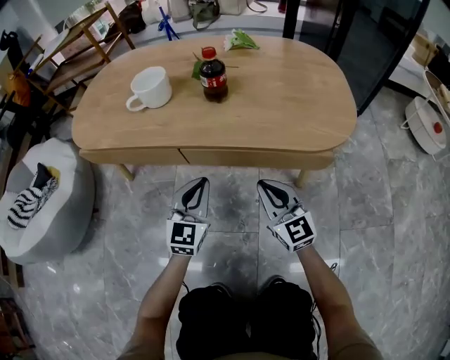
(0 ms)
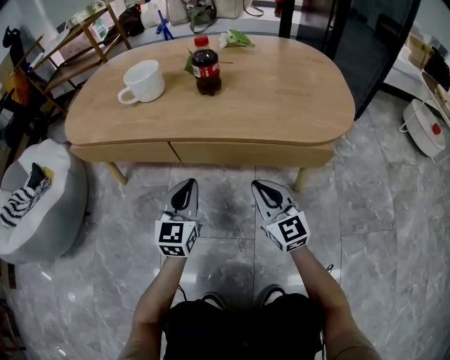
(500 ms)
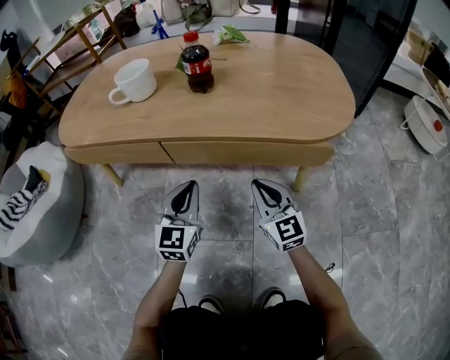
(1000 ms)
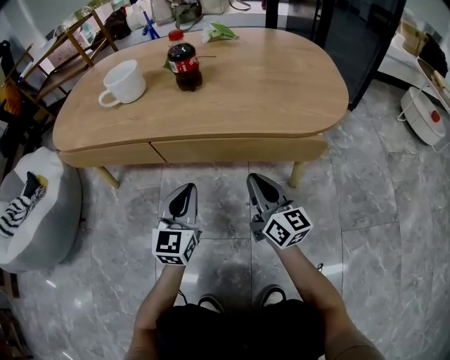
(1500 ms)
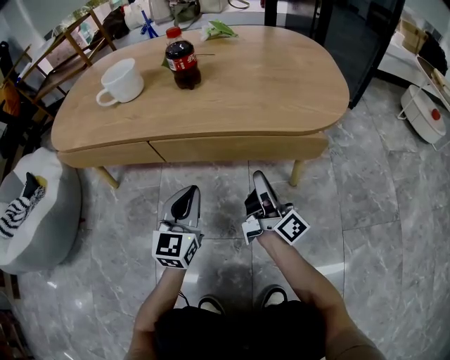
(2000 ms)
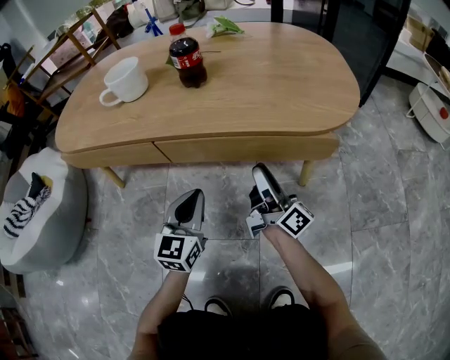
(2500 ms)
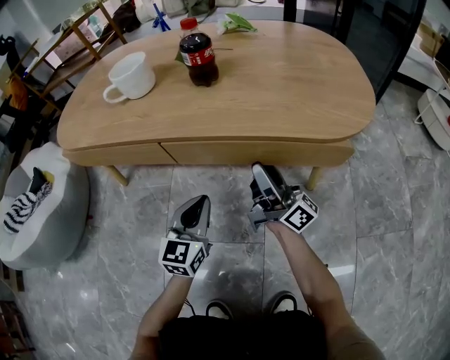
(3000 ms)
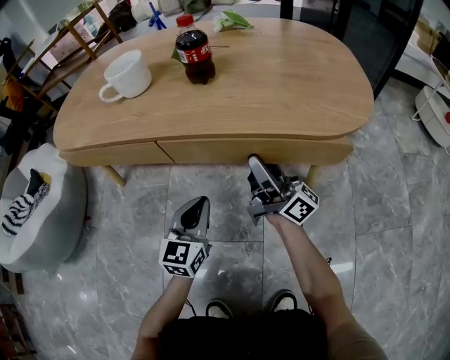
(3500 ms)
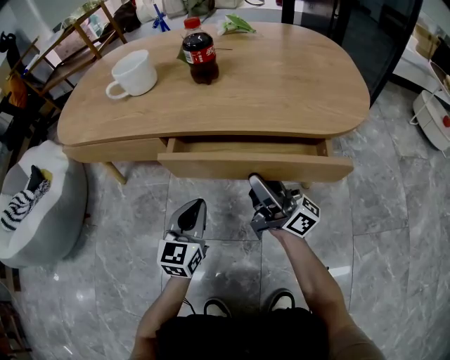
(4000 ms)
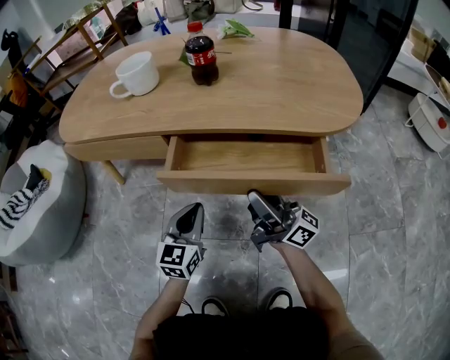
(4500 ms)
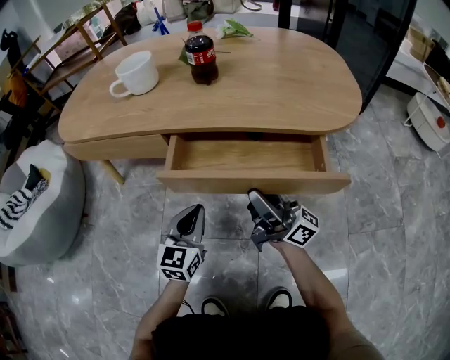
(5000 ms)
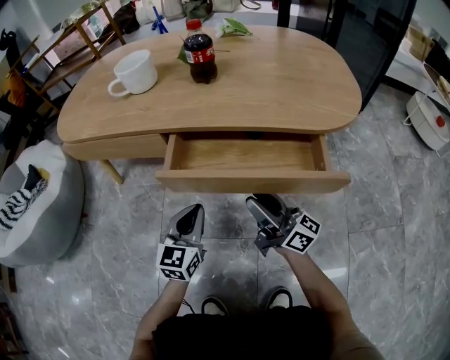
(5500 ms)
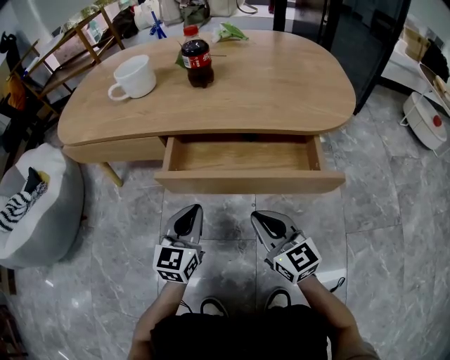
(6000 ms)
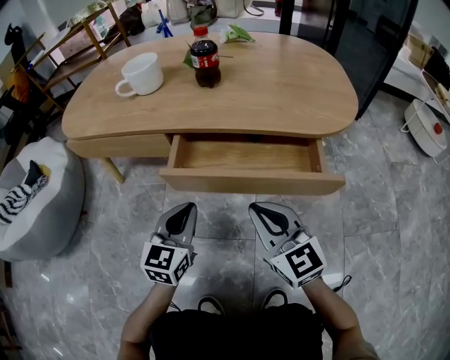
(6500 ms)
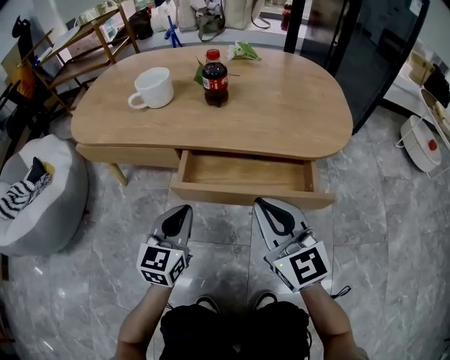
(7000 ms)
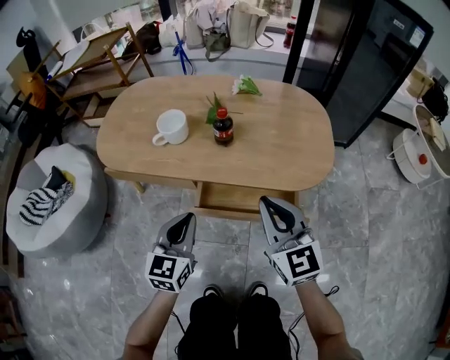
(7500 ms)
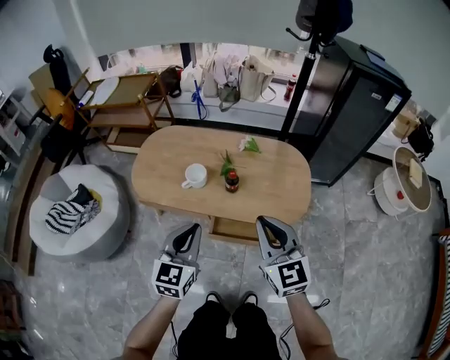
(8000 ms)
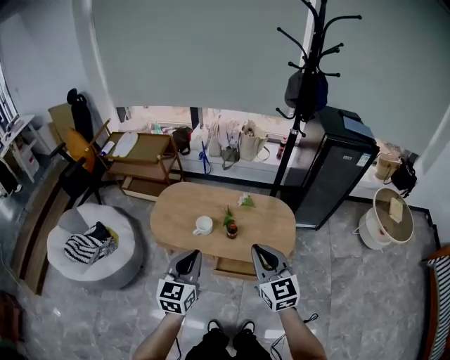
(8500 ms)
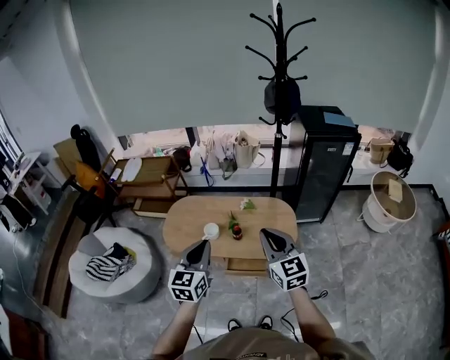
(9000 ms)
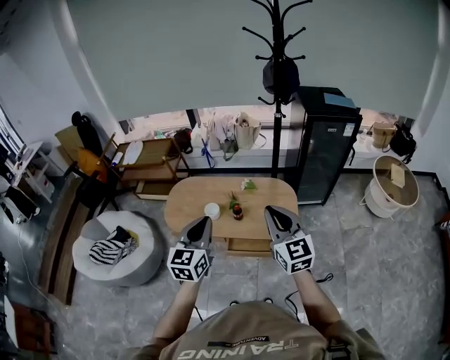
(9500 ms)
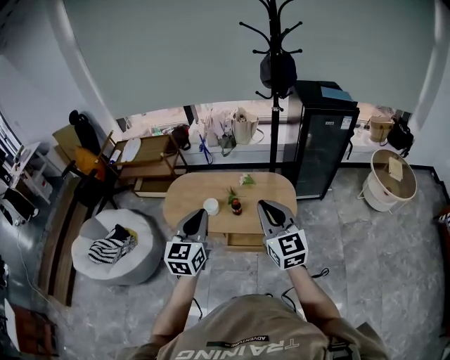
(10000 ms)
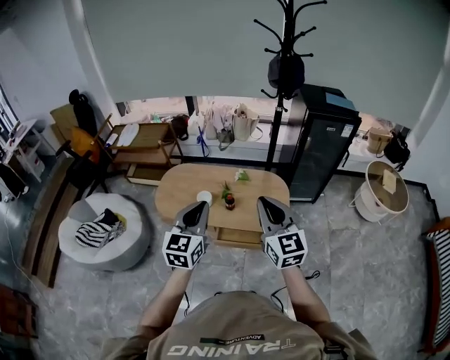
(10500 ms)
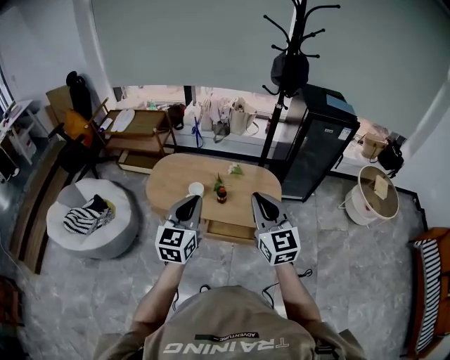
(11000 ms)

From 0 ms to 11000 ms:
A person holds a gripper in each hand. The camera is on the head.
From 0 ms to 2000 ms: The left gripper changes place by some 5 cm. The right gripper shifts roughly 10 cm to the right and downward, and rolls clockwise, seen from behind, by approximately 60 degrees.
From 2000 ms to 3500 ms: The right gripper shifts by approximately 10 cm, swivels roughly 20 degrees, and opens up.
From 3500 ms to 5500 ms: The right gripper moves backward, approximately 10 cm.
From 5500 ms to 7500 ms: Both grippers move upward, roughly 30 cm. The right gripper tips its fingers downward by some 30 degrees, and closes its fingers.
From 7500 ms to 9000 ms: The grippers both shift upward by approximately 50 cm.
From 9000 ms to 11000 ms: The grippers move only a little.

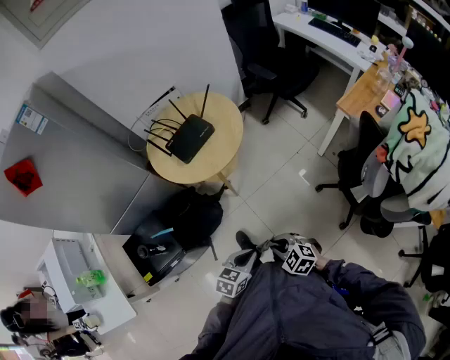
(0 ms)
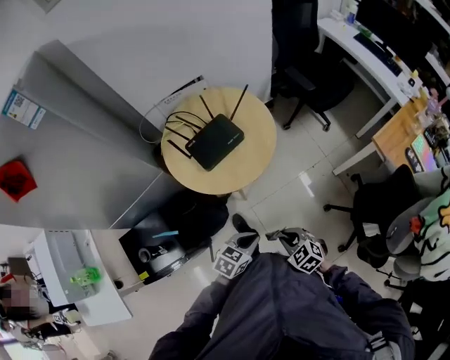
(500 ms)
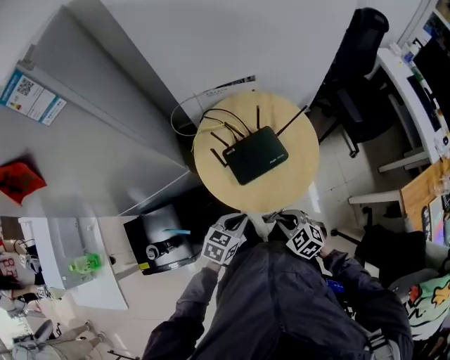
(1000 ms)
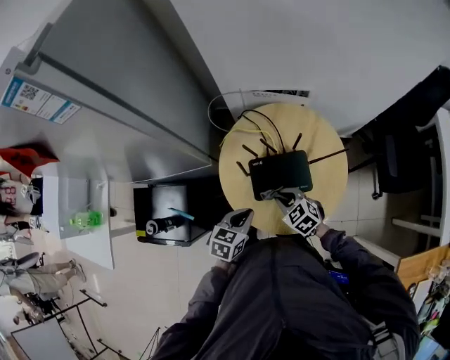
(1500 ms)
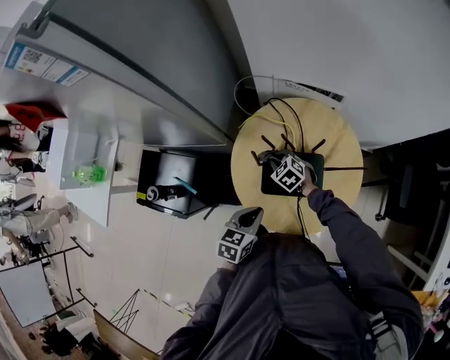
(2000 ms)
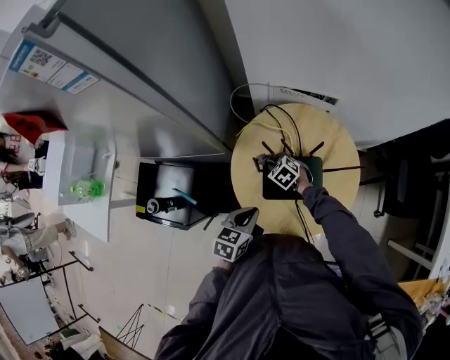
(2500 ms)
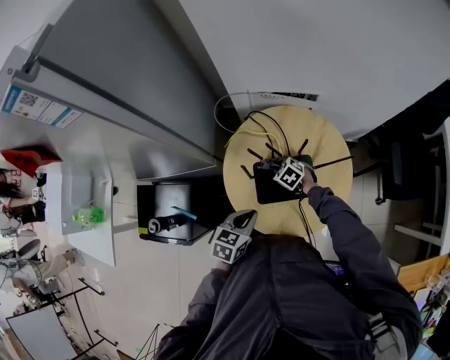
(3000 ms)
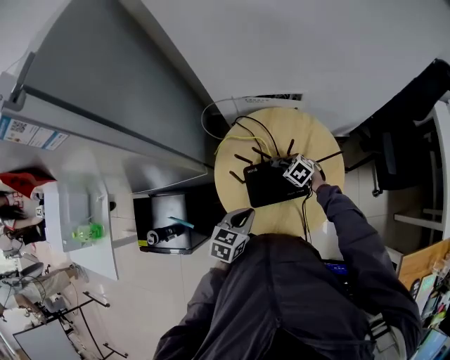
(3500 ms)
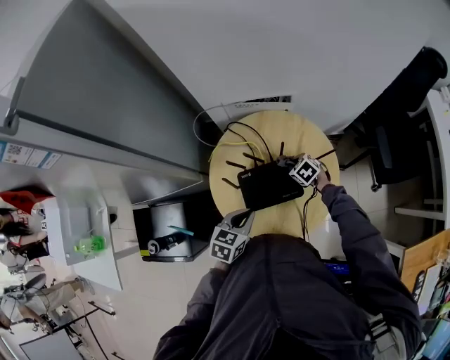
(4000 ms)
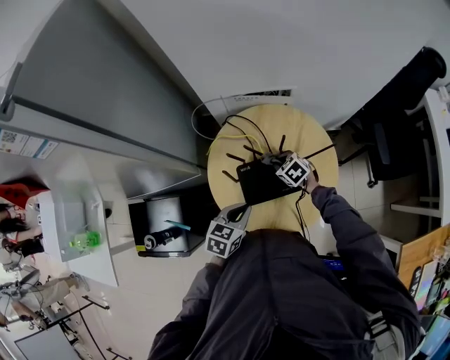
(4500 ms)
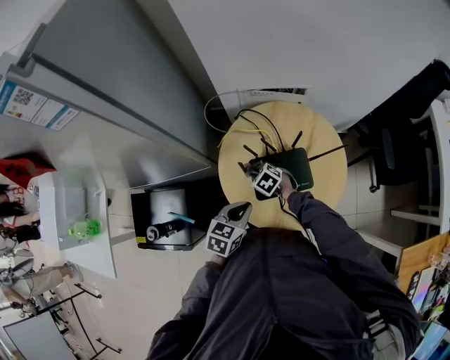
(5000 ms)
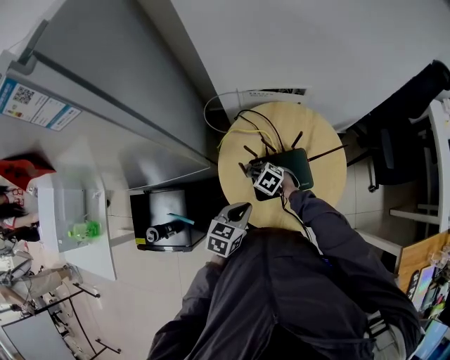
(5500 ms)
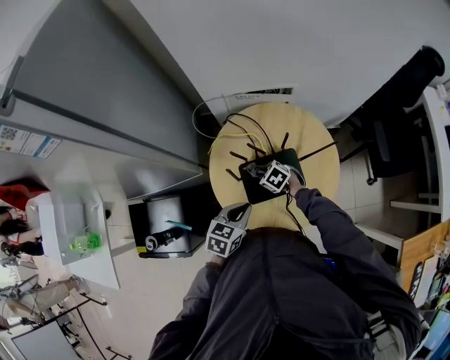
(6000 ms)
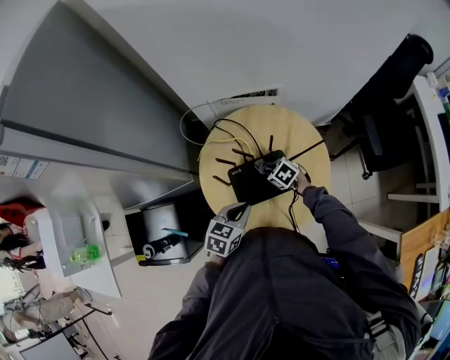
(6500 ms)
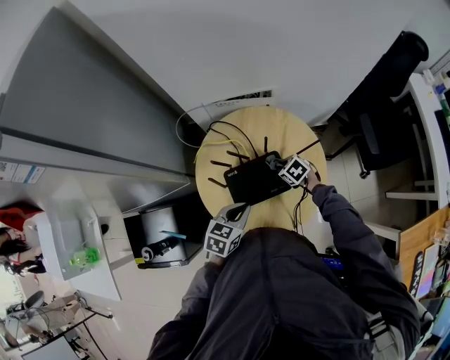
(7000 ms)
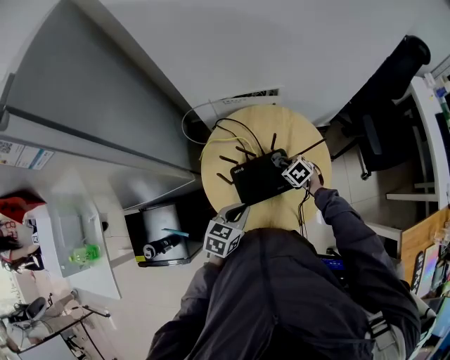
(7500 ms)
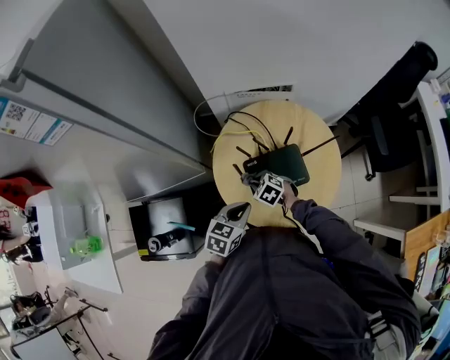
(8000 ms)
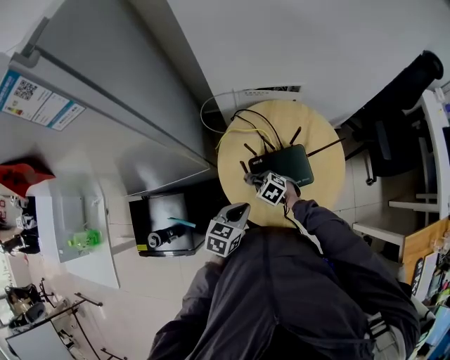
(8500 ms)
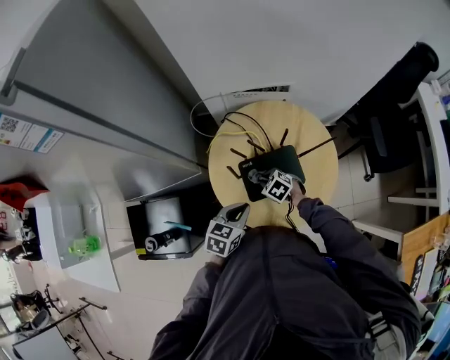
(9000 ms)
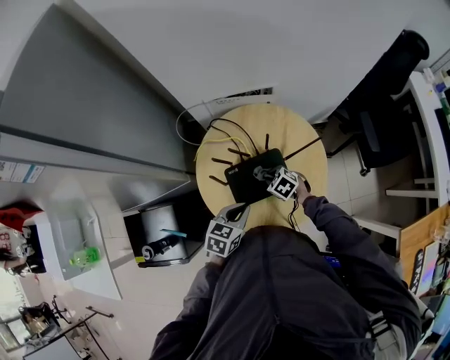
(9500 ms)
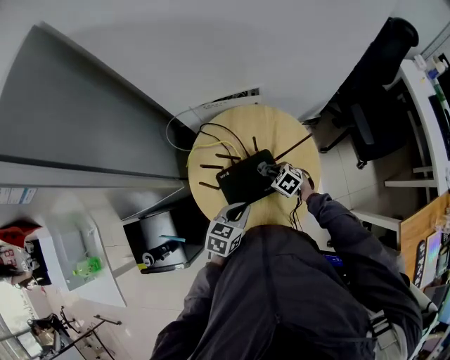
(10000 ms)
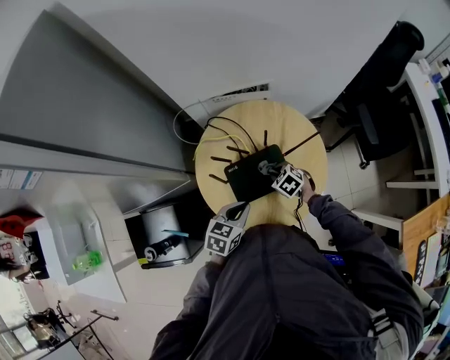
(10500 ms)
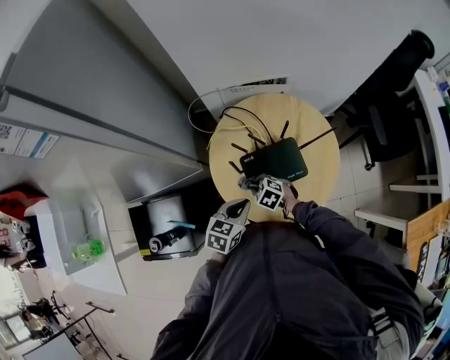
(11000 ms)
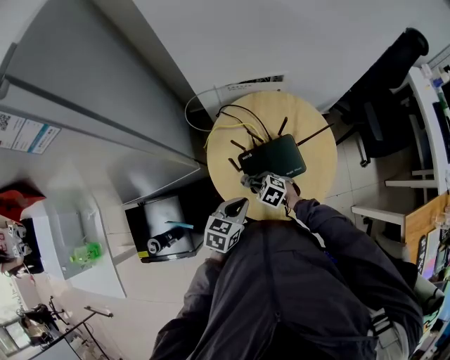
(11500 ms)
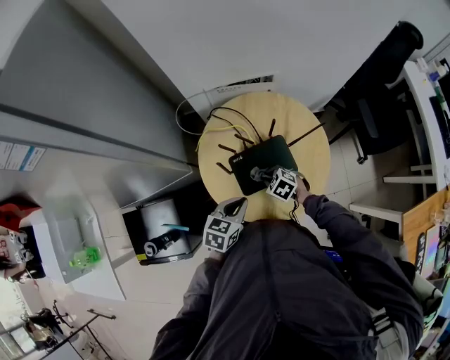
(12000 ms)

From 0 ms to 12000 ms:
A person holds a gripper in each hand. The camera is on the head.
From 0 ms to 2000 ms: Both grippers are carried about 60 cm. The left gripper changes its angle by roughly 50 degrees. The right gripper turns by about 30 degrees.
From 2000 ms to 4000 ms: The right gripper heads to the right, covering some 20 cm, and changes its angle by approximately 20 degrees. Meanwhile the left gripper changes its angle by about 20 degrees.
From 4000 ms to 6000 ms: The right gripper travels to the left by approximately 15 cm.
From 6000 ms to 8000 ms: The right gripper reaches roughly 15 cm to the right, then returns.
From 8000 ms to 10000 ms: The right gripper goes approximately 20 cm to the right. Meanwhile the left gripper shifts about 10 cm to the right.
From 10000 ms to 12000 ms: The right gripper goes roughly 10 cm to the left and backward; the left gripper heads to the left, covering roughly 5 cm.

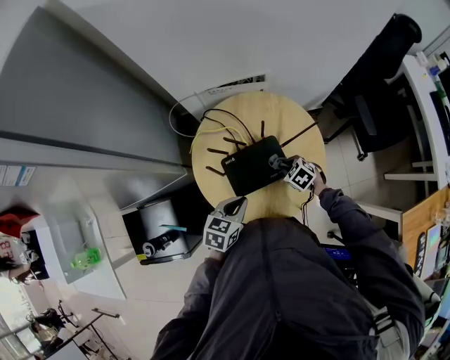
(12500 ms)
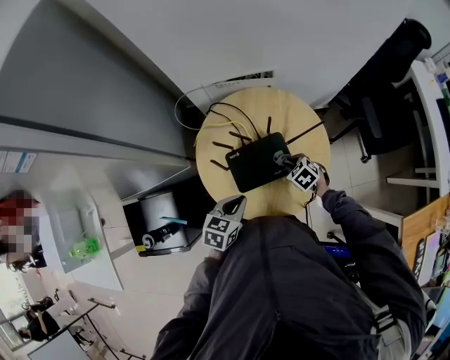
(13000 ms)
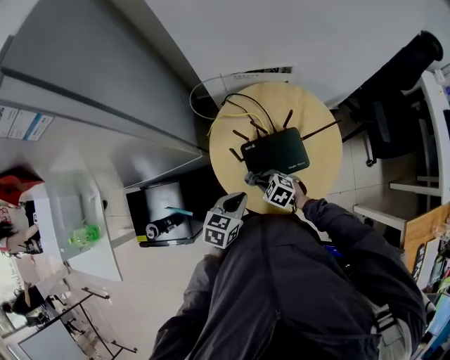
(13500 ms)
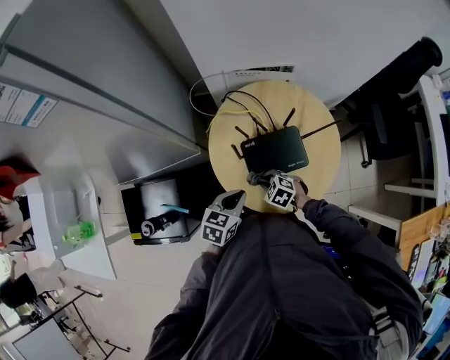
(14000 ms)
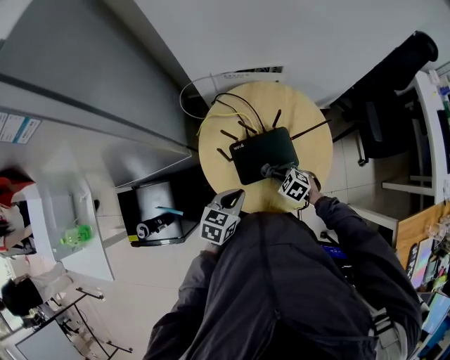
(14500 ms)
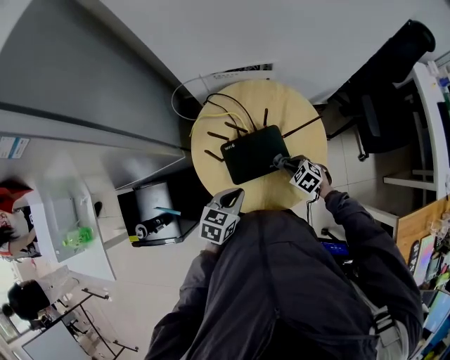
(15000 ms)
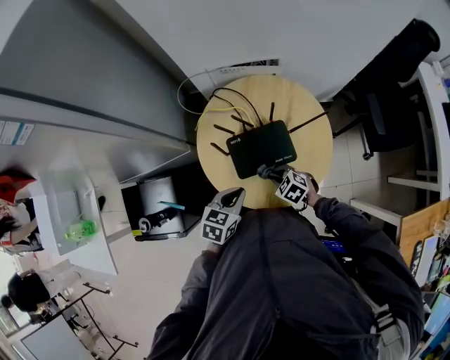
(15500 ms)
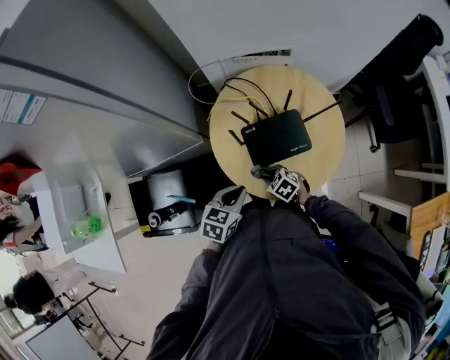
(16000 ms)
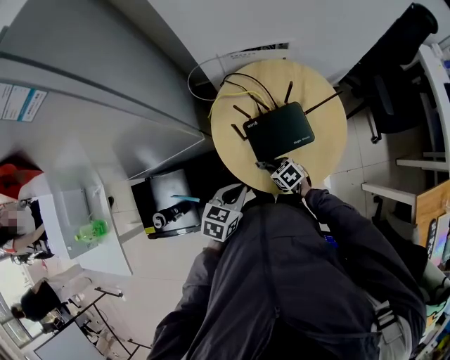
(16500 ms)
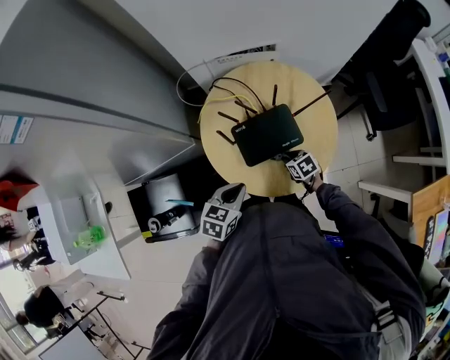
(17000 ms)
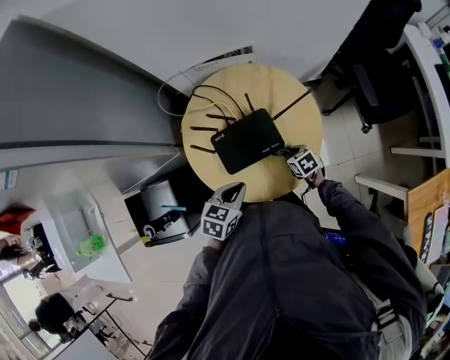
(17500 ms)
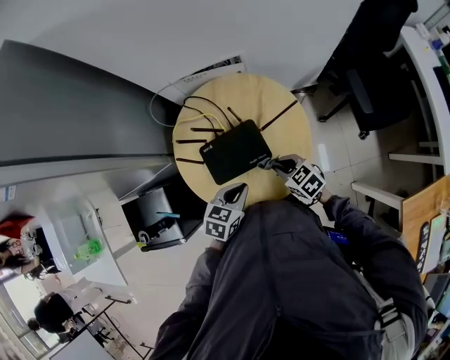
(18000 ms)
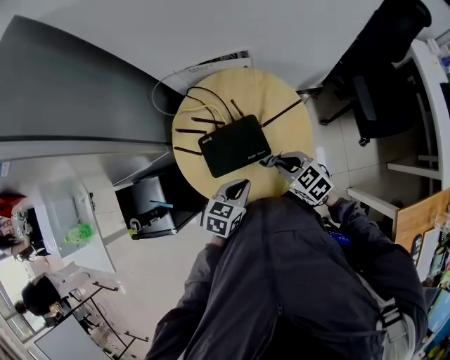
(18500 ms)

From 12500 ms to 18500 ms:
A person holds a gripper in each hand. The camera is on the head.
From 12500 ms to 14500 ms: The right gripper is displaced to the left by approximately 5 cm.
From 14500 ms to 16500 ms: The grippers both shift to the left by about 10 cm. The right gripper swivels about 30 degrees.
From 16500 ms to 18500 ms: The left gripper goes approximately 20 cm to the right; the right gripper moves to the right and upward, roughly 25 cm, and changes its angle by approximately 20 degrees.
